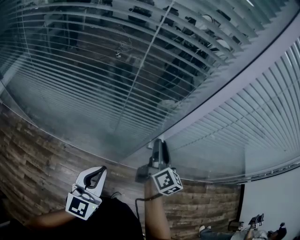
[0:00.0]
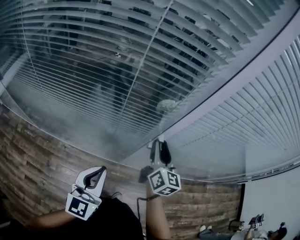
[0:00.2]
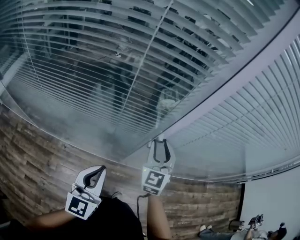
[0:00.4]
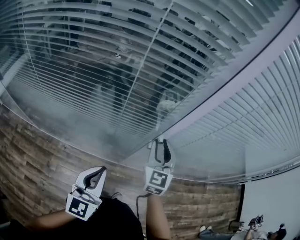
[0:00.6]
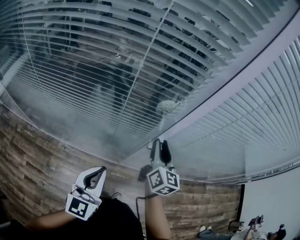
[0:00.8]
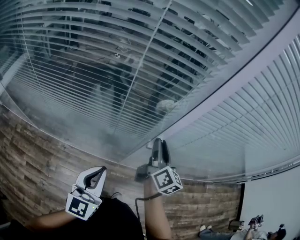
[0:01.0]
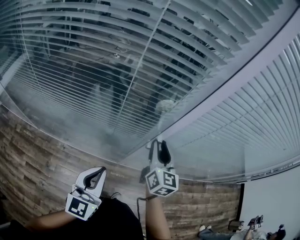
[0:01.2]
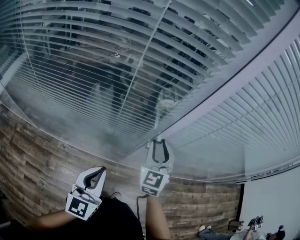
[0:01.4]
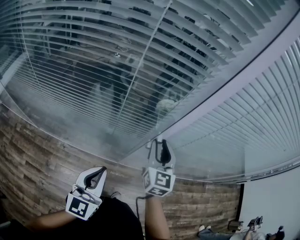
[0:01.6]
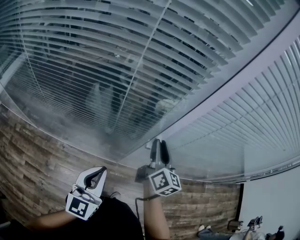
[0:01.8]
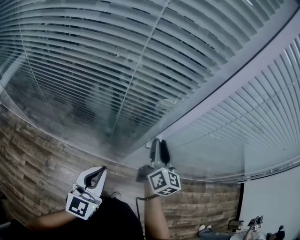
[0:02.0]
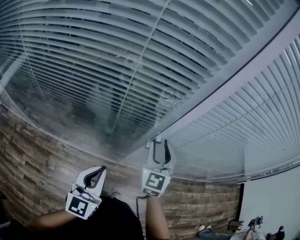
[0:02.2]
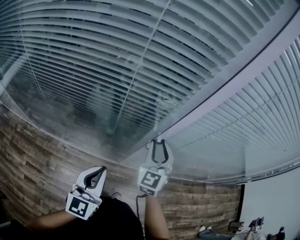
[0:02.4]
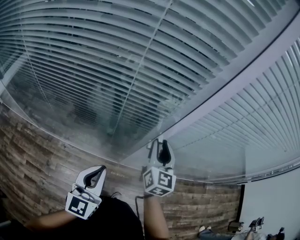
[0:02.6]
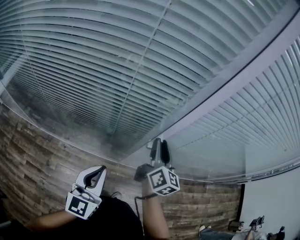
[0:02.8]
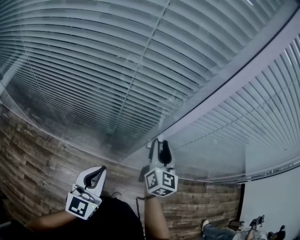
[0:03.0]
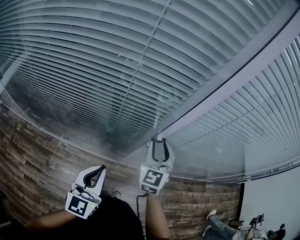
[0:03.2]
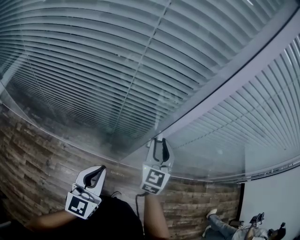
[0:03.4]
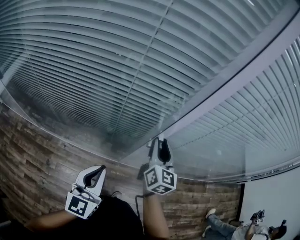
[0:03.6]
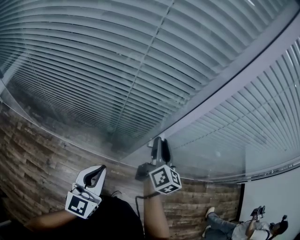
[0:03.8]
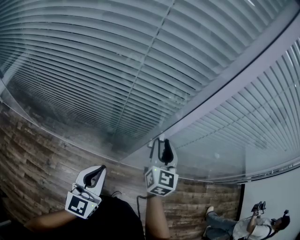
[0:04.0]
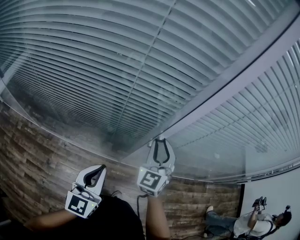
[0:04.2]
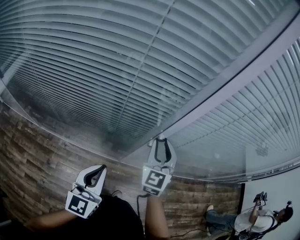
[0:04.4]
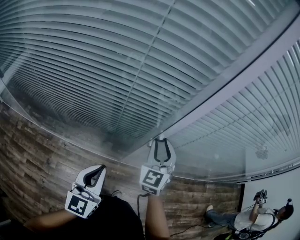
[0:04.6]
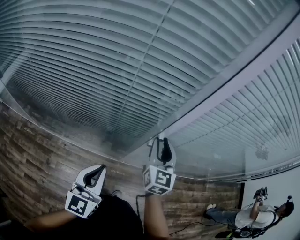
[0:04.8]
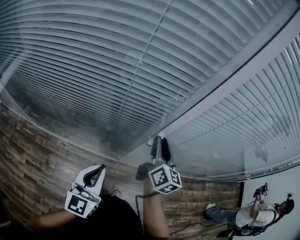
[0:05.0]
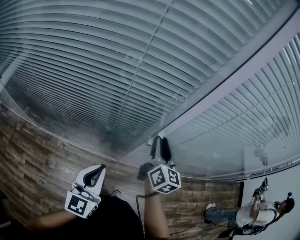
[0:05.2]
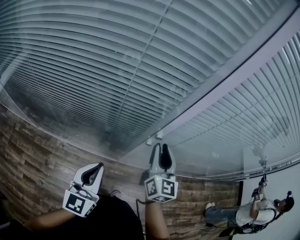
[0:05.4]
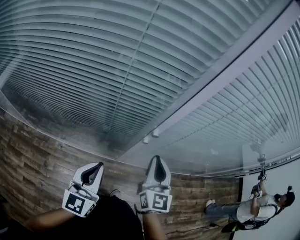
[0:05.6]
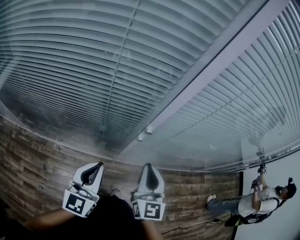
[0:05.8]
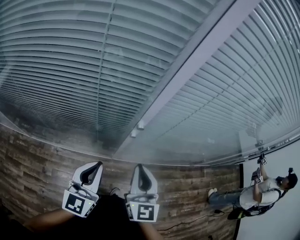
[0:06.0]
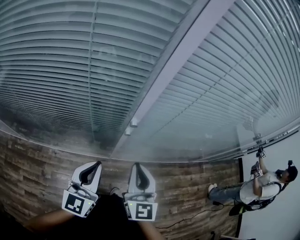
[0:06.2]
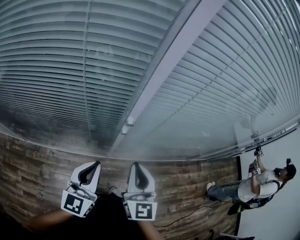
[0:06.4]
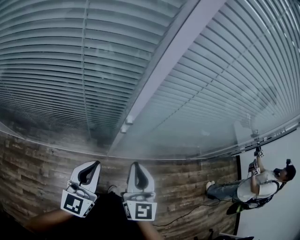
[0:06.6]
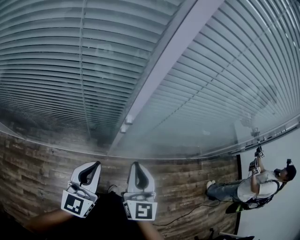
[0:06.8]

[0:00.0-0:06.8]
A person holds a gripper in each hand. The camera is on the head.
0:00.0 to 0:01.4: The right gripper rolls counterclockwise, seen from behind, by approximately 60 degrees.
0:01.4 to 0:02.8: The right gripper rolls clockwise, seen from behind, by roughly 50 degrees.
0:02.8 to 0:04.0: The right gripper turns by some 30 degrees.
0:05.4 to 0:06.8: The left gripper shifts about 10 cm to the right; the right gripper moves backward, approximately 10 cm, and closes.

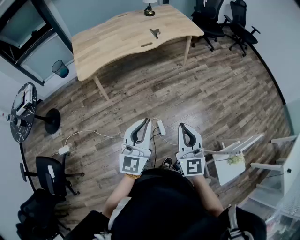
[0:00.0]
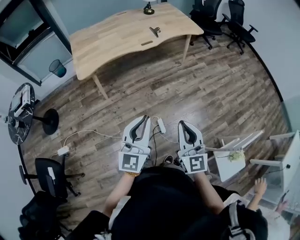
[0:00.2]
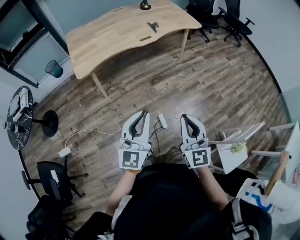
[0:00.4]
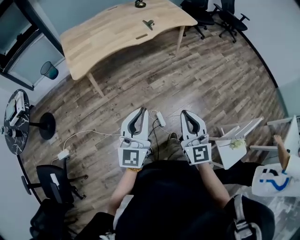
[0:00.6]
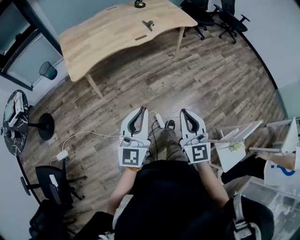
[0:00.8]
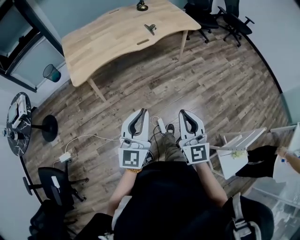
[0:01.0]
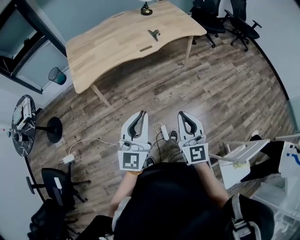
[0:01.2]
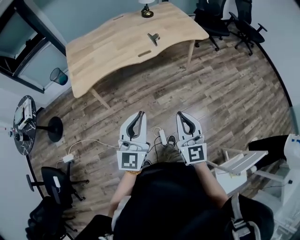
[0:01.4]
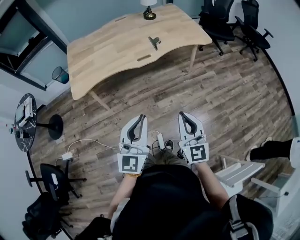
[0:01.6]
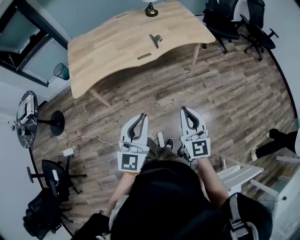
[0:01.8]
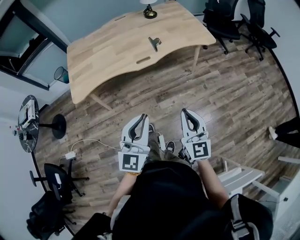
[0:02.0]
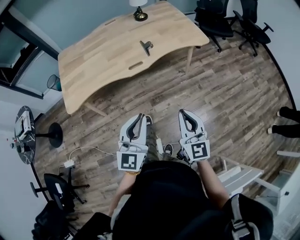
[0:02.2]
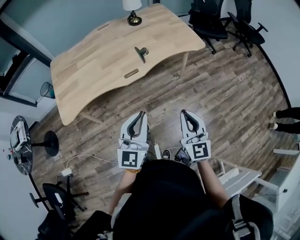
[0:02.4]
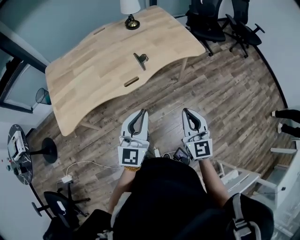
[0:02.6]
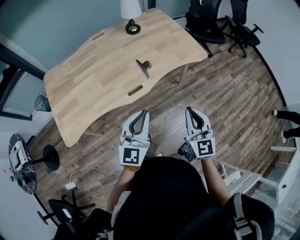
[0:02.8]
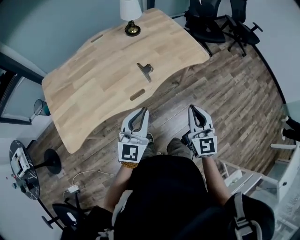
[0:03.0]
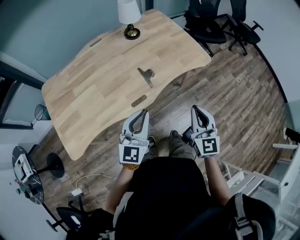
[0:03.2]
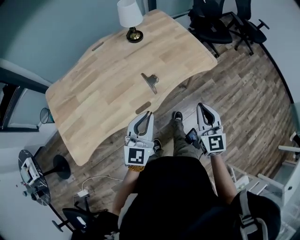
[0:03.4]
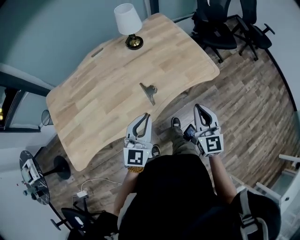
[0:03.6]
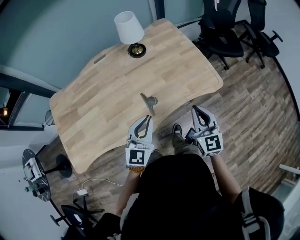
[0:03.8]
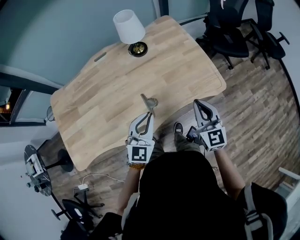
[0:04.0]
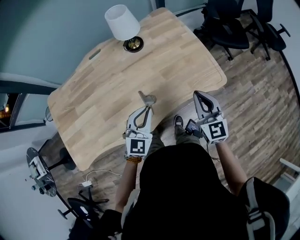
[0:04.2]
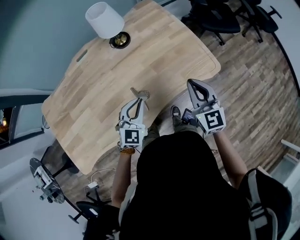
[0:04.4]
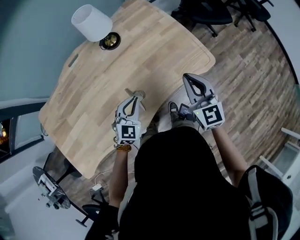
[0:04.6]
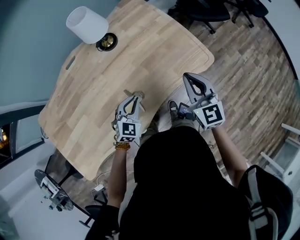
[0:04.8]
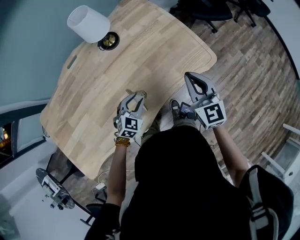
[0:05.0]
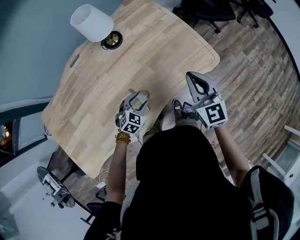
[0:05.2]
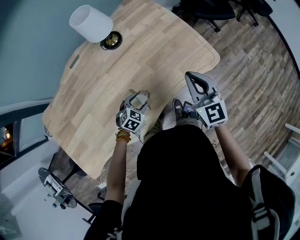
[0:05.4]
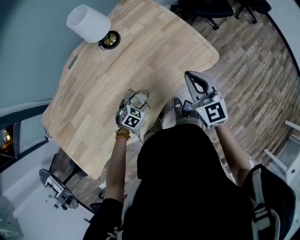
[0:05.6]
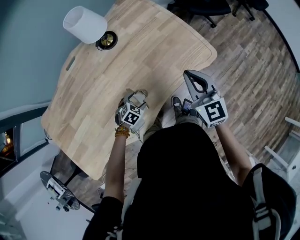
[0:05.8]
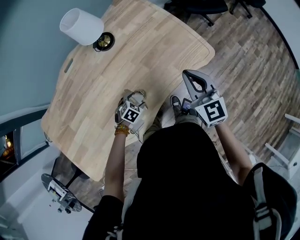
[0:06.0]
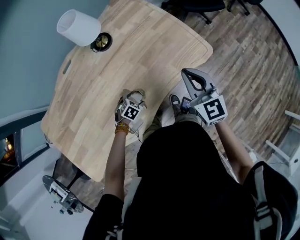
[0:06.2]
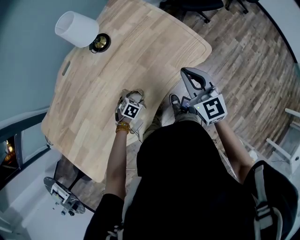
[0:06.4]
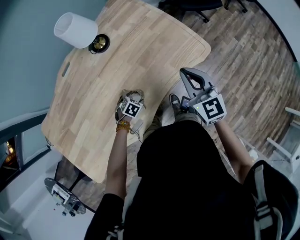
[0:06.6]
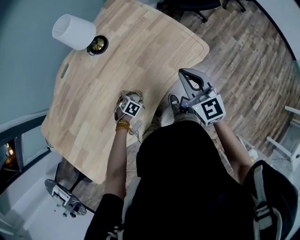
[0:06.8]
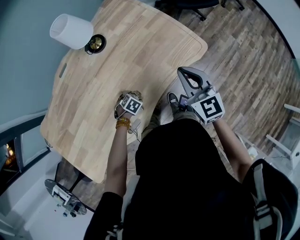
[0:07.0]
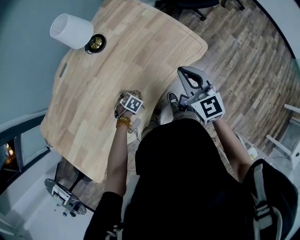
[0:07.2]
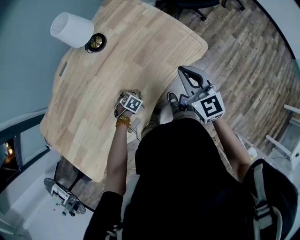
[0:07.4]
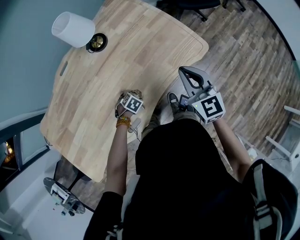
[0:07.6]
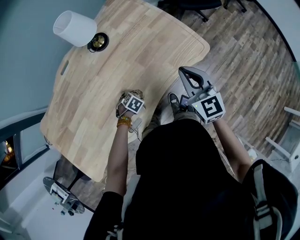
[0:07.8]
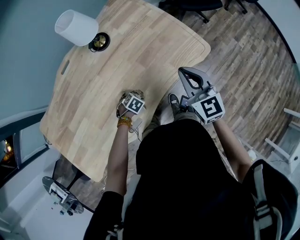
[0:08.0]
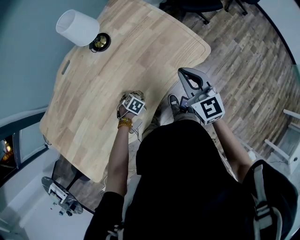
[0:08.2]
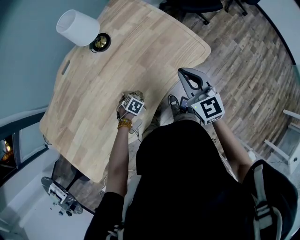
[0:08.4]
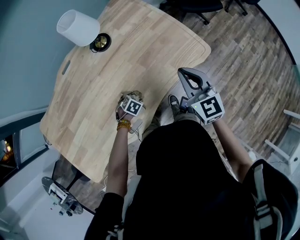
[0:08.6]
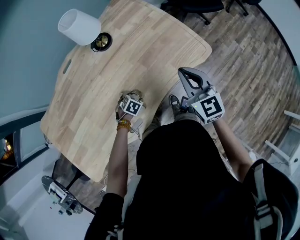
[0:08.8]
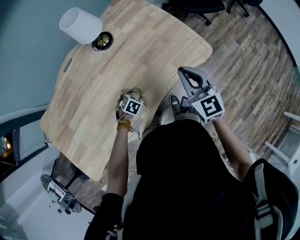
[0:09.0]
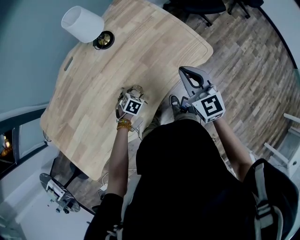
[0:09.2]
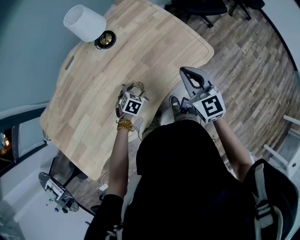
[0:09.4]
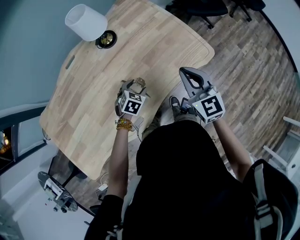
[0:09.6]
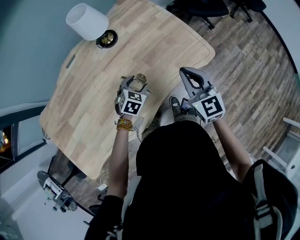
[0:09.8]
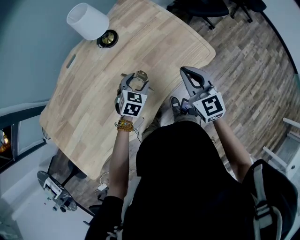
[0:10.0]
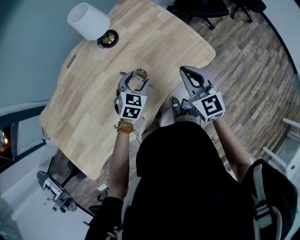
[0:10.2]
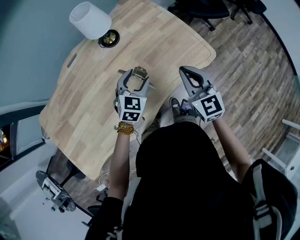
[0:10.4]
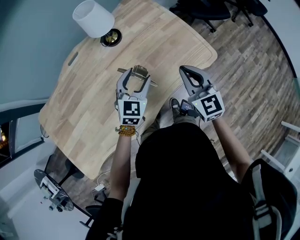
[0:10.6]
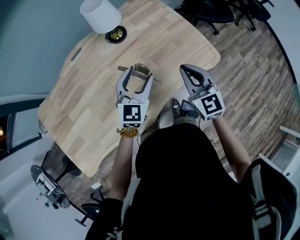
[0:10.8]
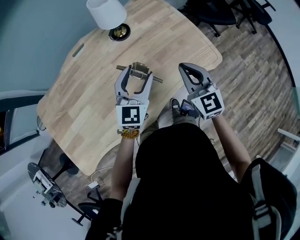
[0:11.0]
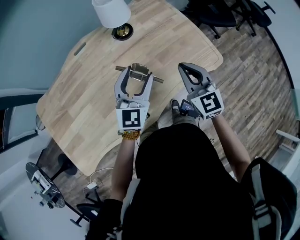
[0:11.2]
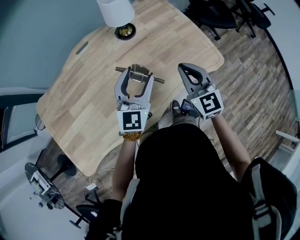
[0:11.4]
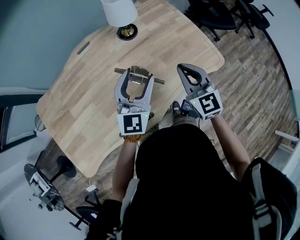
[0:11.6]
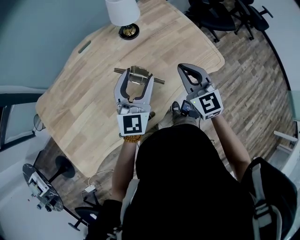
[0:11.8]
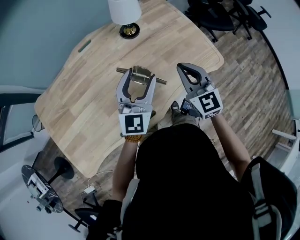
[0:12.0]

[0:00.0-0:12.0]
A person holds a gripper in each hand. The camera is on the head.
0:00.0 to 0:01.6: The grippers both shift forward by roughly 25 cm.
0:01.6 to 0:03.0: The grippers both shift forward by approximately 40 cm.
0:03.0 to 0:04.4: The grippers both shift forward by roughly 35 cm. The left gripper changes its angle by about 30 degrees.
0:04.4 to 0:06.0: The left gripper shifts roughly 25 cm downward, points its fingers some 40 degrees further downward, and opens its fingers.
0:06.0 to 0:09.0: There are only small adjustments of the grippers.
0:09.0 to 0:10.4: The left gripper travels upward by some 20 cm, and points its fingers roughly 40 degrees further upward.
0:10.4 to 0:12.0: The left gripper moves upward and to the left, some 20 cm, and tips its fingers upward by approximately 30 degrees. Meanwhile the right gripper shifts roughly 15 cm to the left.

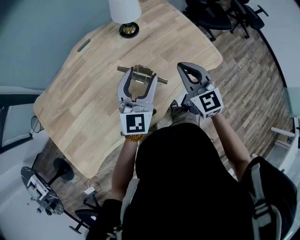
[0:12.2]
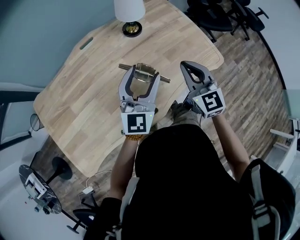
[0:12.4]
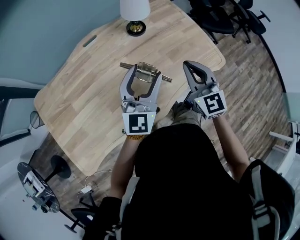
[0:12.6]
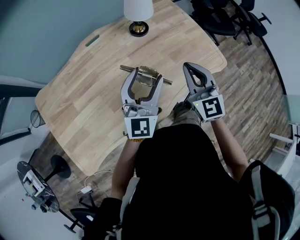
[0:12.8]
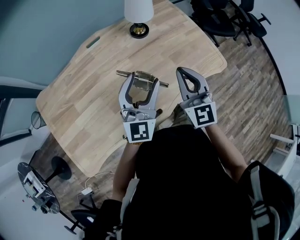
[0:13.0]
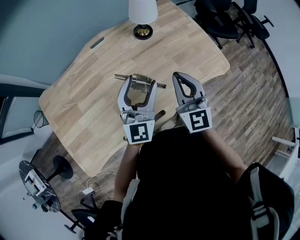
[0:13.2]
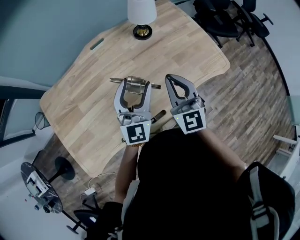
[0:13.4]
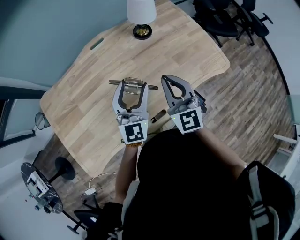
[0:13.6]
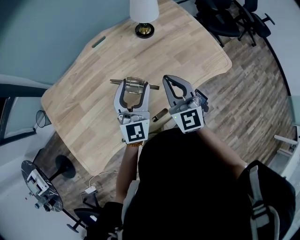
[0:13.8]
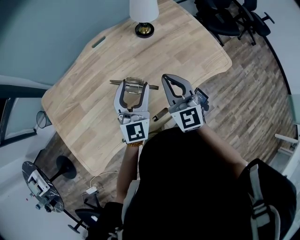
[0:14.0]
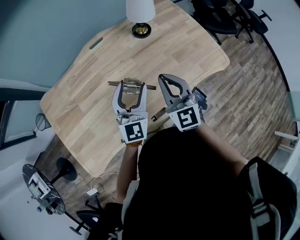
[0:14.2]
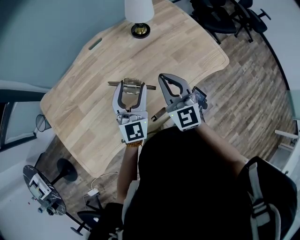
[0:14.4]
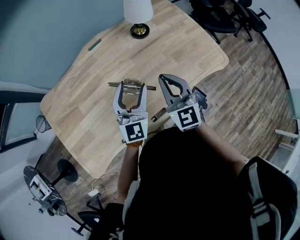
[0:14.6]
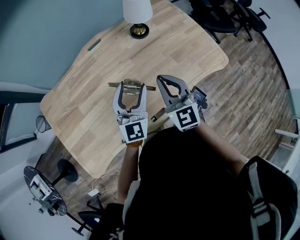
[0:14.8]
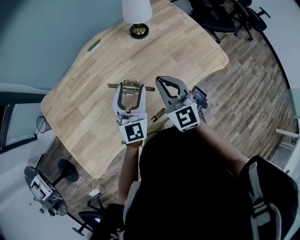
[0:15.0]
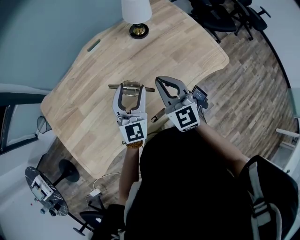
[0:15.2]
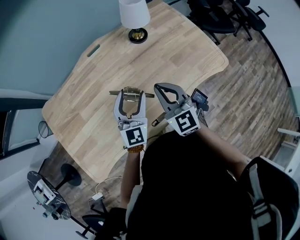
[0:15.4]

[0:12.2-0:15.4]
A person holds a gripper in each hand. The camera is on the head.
0:12.2 to 0:13.8: Both grippers travel together to the left, approximately 10 cm.
0:13.8 to 0:15.4: There are only small adjustments of the grippers.

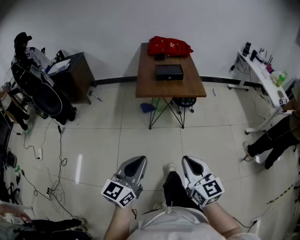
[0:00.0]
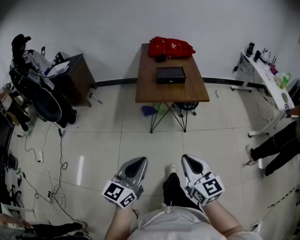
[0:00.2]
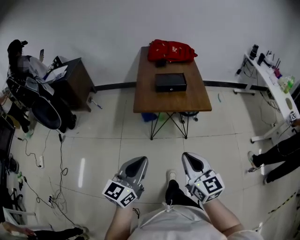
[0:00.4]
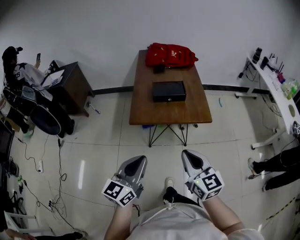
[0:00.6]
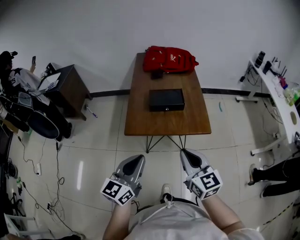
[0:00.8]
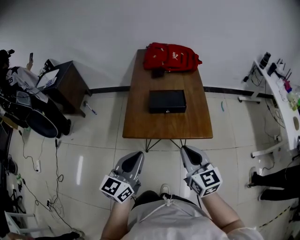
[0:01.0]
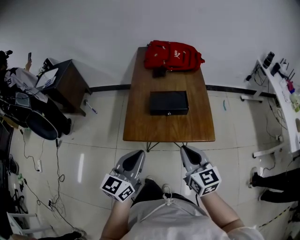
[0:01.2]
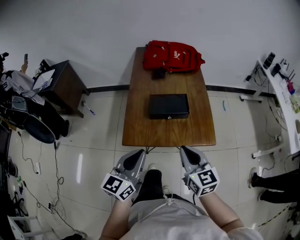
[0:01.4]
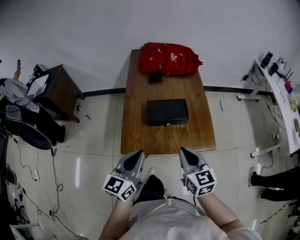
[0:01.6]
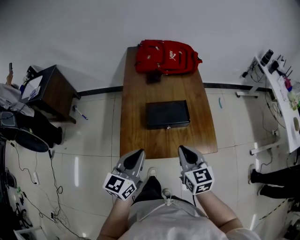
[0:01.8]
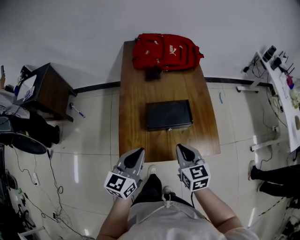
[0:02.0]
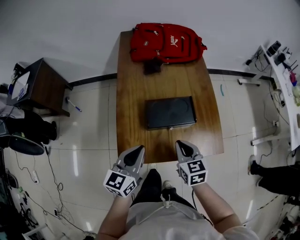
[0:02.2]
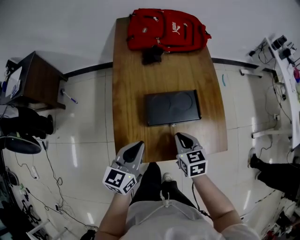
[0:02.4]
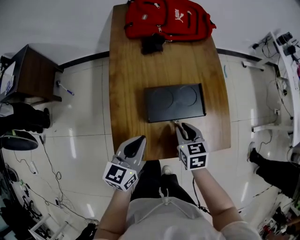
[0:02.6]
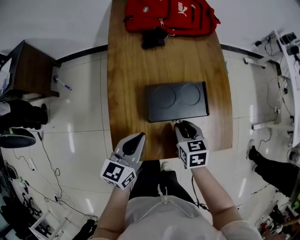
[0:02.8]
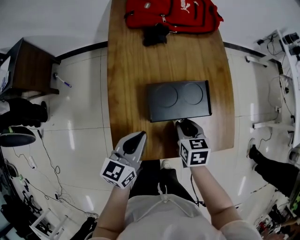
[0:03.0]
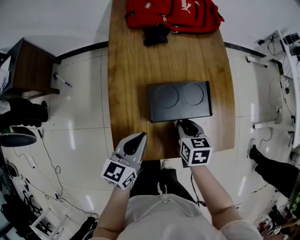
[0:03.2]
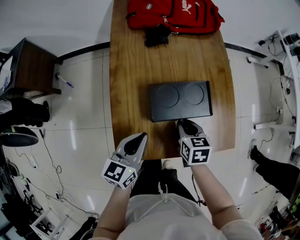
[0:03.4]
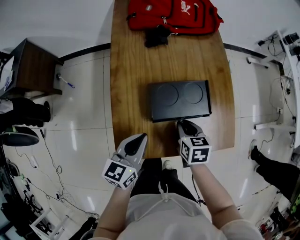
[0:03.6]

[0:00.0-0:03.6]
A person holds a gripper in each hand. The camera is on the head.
0:00.0 to 0:01.8: Both grippers are carried forward, approximately 60 cm.
0:01.8 to 0:03.6: The grippers both shift downward and forward by approximately 20 cm. The right gripper changes its angle by approximately 30 degrees.
